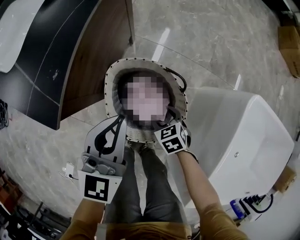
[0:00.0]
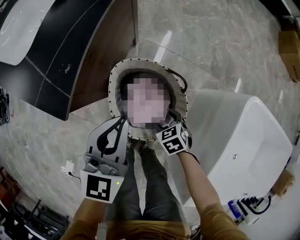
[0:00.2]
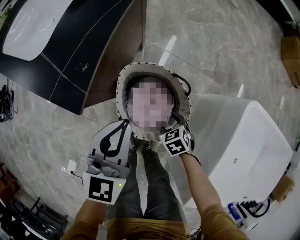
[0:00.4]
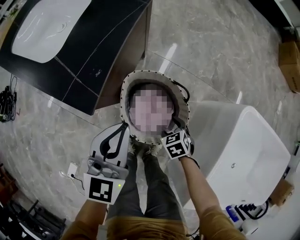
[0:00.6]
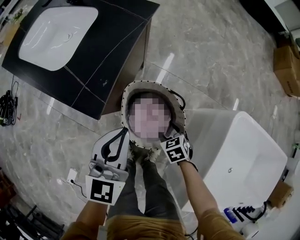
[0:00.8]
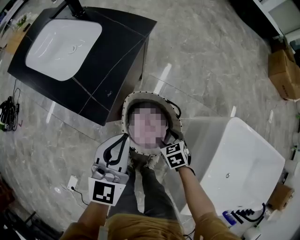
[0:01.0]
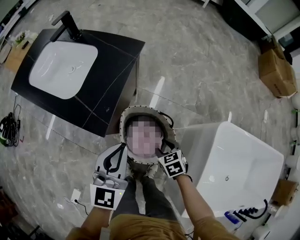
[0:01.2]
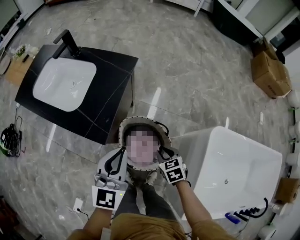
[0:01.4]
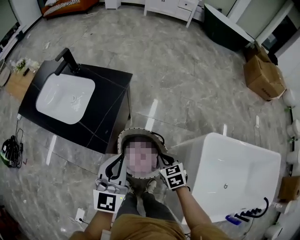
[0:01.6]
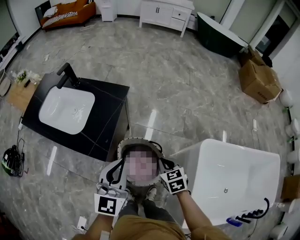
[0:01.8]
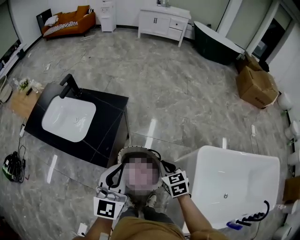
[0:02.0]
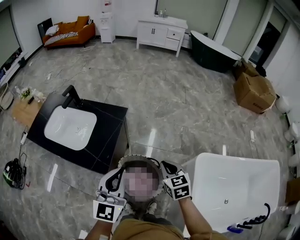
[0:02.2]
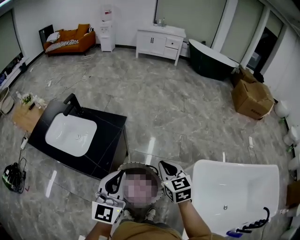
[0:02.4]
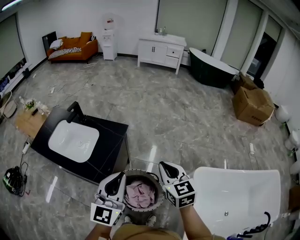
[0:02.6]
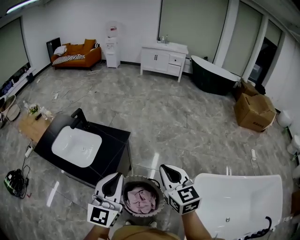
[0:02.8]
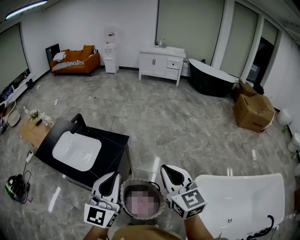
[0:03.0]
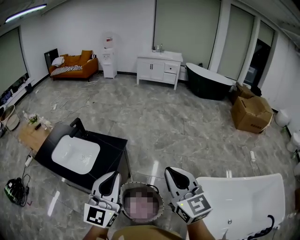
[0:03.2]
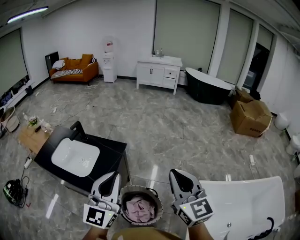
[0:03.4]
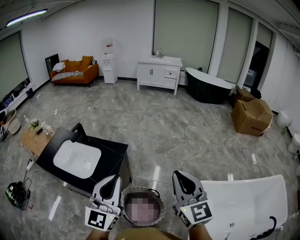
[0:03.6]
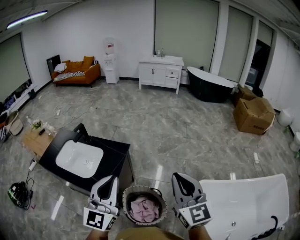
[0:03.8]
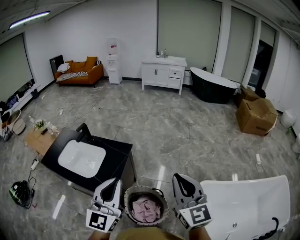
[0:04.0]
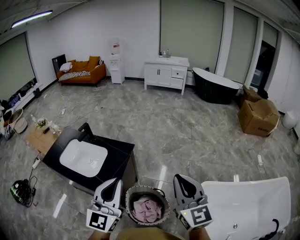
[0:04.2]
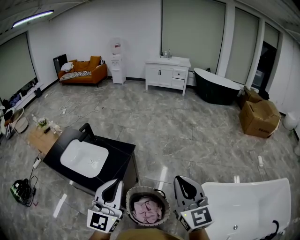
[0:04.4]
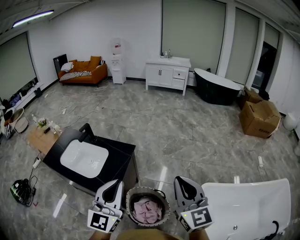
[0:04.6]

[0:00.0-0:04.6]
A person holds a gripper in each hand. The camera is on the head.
0:00.0 to 0:01.6: Both grippers travel together upward, roughly 30 cm. The right gripper closes its fingers.
0:01.6 to 0:03.0: The left gripper goes about 20 cm upward, while the right gripper travels upward by approximately 40 cm, and tilts its fingers about 40 degrees upward.
0:03.0 to 0:04.6: The right gripper shifts by some 5 cm.

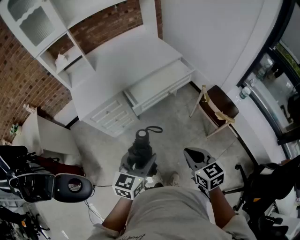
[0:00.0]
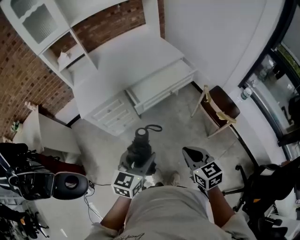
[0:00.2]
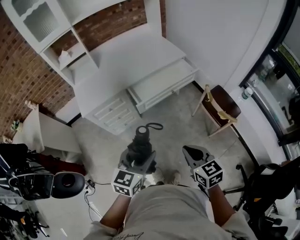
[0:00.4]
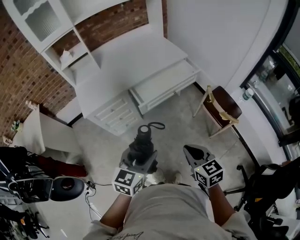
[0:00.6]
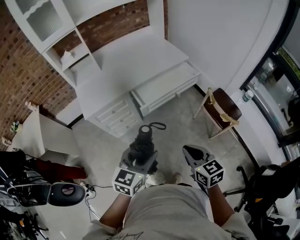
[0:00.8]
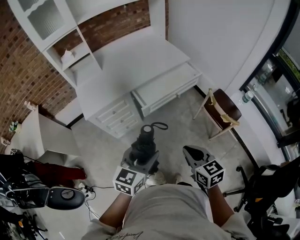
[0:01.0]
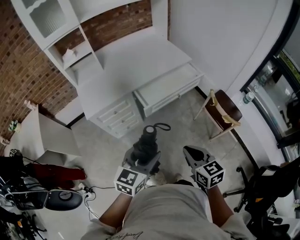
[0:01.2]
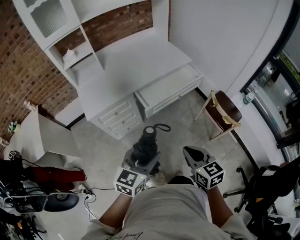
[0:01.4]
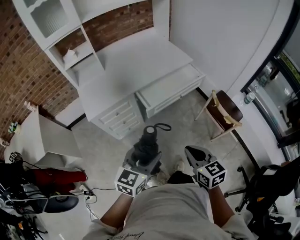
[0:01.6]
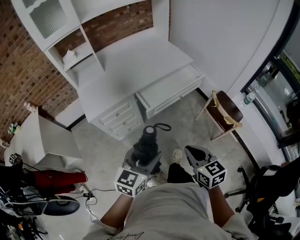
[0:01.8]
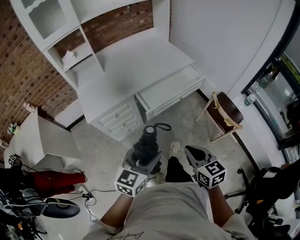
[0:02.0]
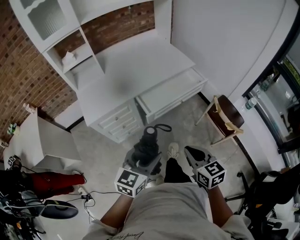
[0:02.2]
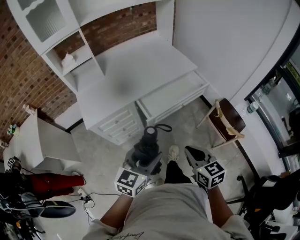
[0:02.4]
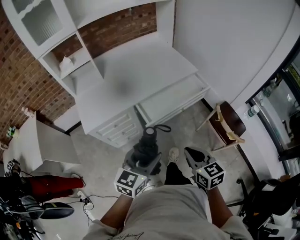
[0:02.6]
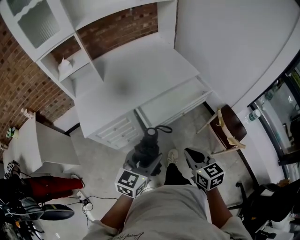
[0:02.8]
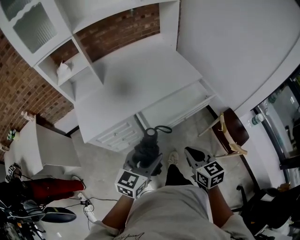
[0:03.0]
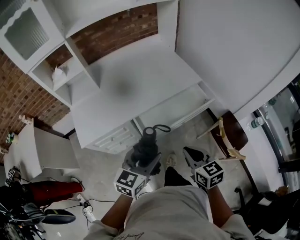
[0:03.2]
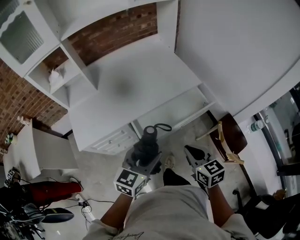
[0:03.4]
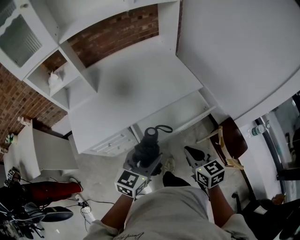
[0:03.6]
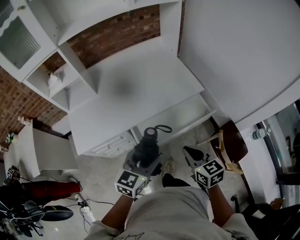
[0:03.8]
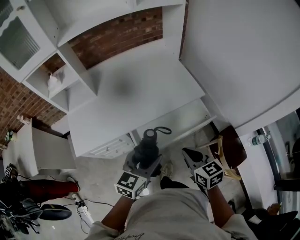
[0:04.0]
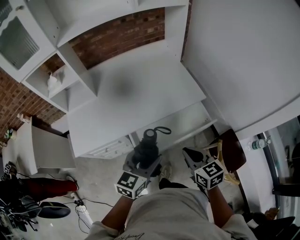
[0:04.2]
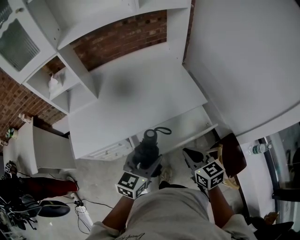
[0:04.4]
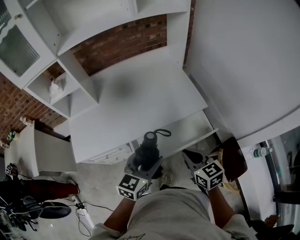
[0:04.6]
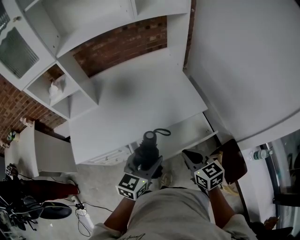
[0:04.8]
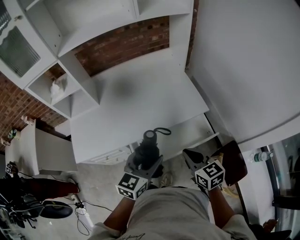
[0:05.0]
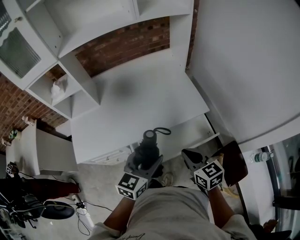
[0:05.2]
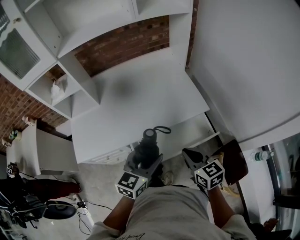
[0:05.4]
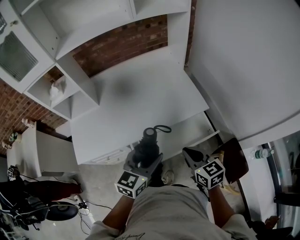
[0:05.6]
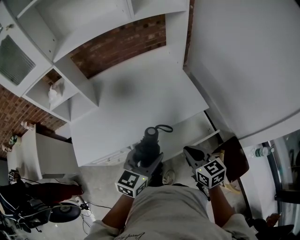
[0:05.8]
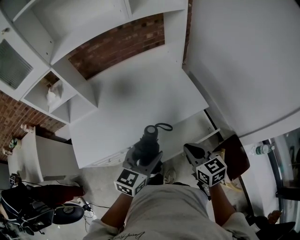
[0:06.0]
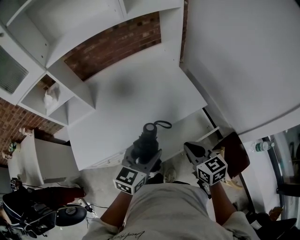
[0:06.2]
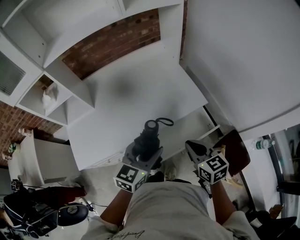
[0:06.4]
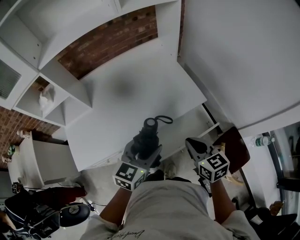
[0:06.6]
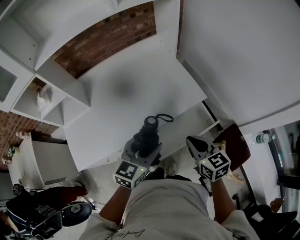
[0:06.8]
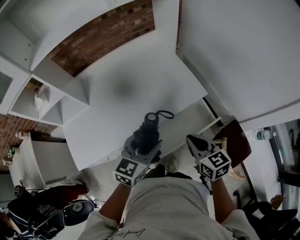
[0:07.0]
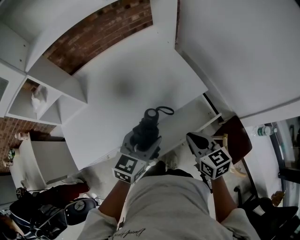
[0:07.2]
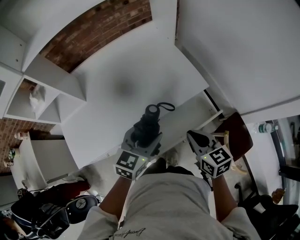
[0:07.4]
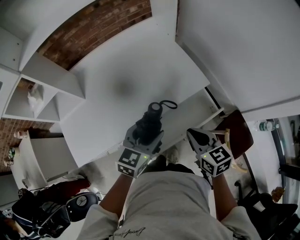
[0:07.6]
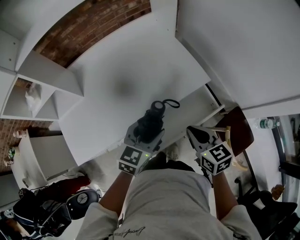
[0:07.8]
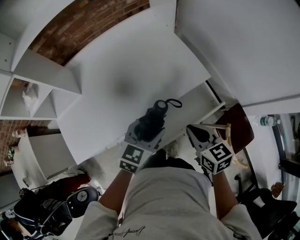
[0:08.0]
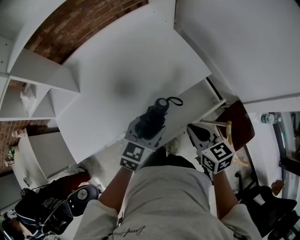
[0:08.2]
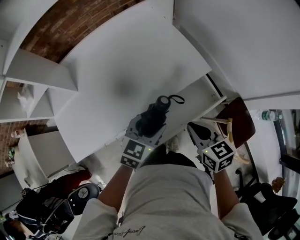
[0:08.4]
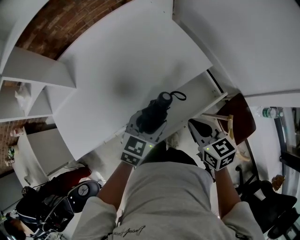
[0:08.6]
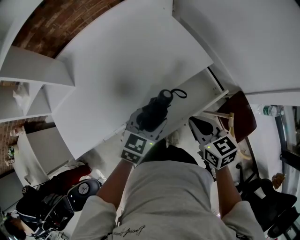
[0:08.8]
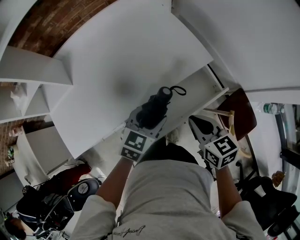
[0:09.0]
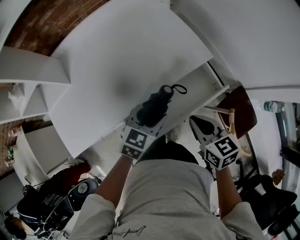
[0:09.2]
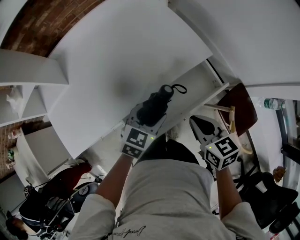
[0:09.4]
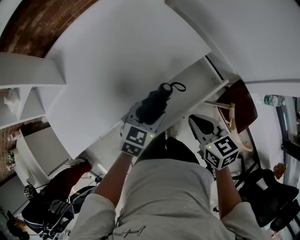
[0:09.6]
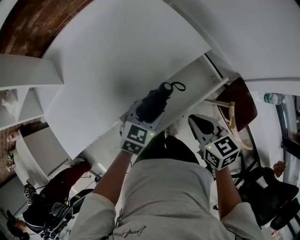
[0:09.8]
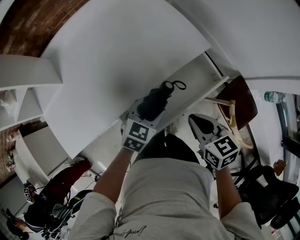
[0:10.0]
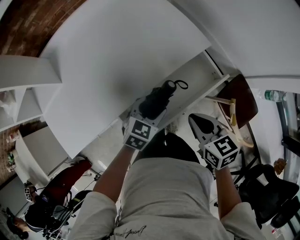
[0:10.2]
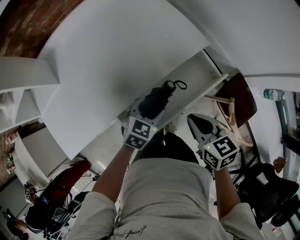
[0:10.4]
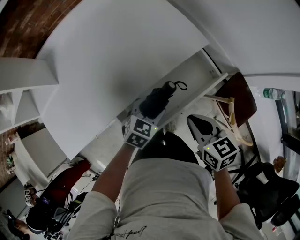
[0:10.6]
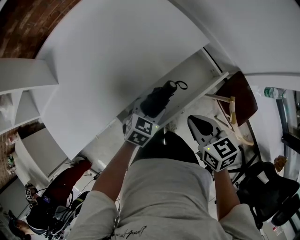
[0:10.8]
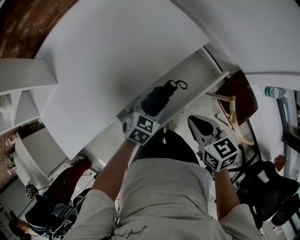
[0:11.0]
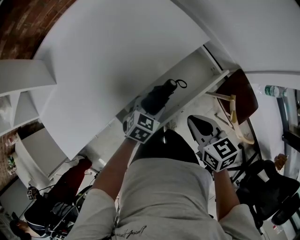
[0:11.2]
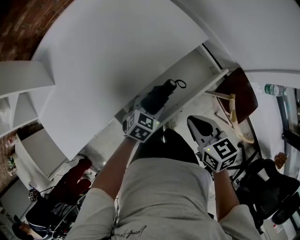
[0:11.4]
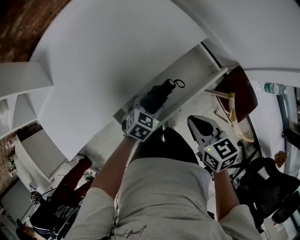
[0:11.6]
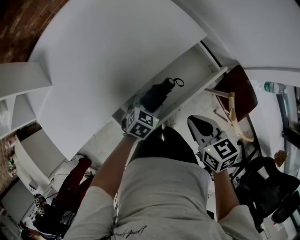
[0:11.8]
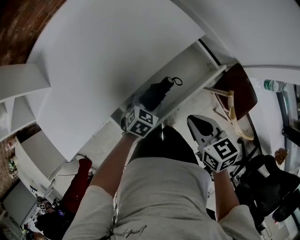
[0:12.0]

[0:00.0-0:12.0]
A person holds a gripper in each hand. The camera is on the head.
0:00.0 to 0:01.6: Both grippers move to the left, some 10 cm.
0:01.6 to 0:03.0: Both grippers move forward, some 20 cm.
0:03.0 to 0:04.4: The grippers both shift forward by roughly 20 cm.
0:04.4 to 0:06.0: Both grippers travel together forward, about 5 cm.
0:06.0 to 0:07.6: The left gripper goes roughly 10 cm forward and downward. The right gripper ends up some 5 cm from where it was.
0:07.6 to 0:09.0: The left gripper moves downward, roughly 10 cm.
0:09.0 to 0:10.4: The left gripper travels downward by approximately 10 cm.
0:10.4 to 0:12.0: The left gripper moves downward, approximately 10 cm.

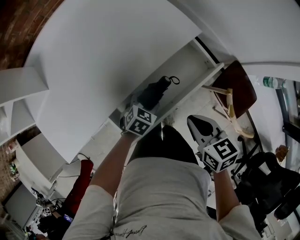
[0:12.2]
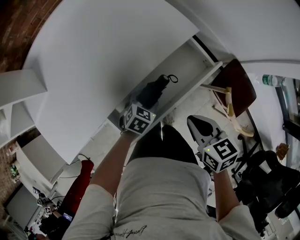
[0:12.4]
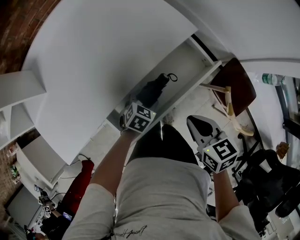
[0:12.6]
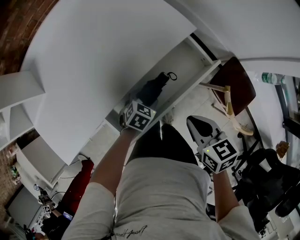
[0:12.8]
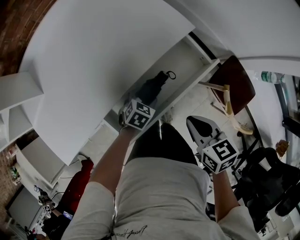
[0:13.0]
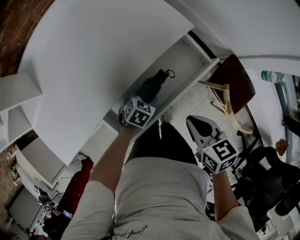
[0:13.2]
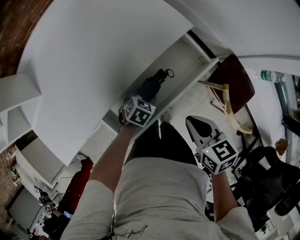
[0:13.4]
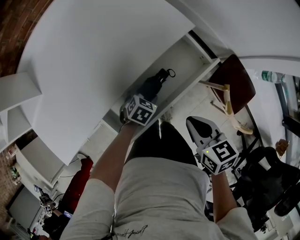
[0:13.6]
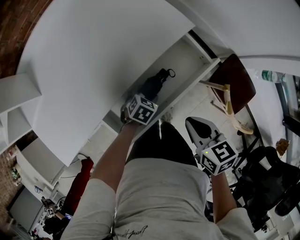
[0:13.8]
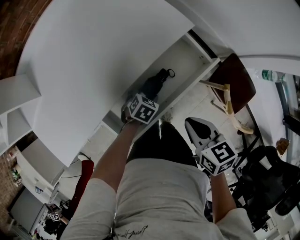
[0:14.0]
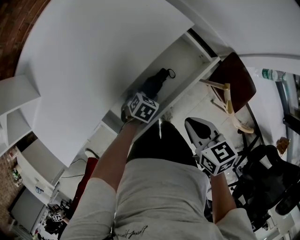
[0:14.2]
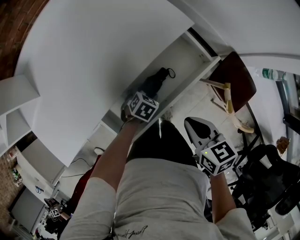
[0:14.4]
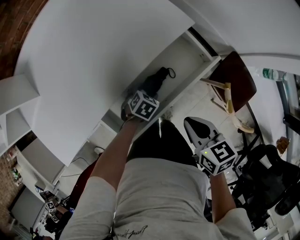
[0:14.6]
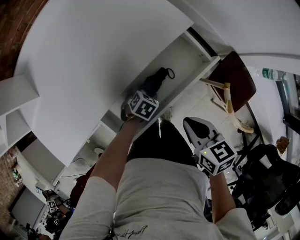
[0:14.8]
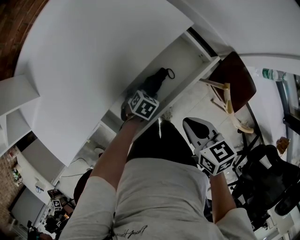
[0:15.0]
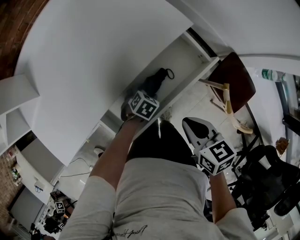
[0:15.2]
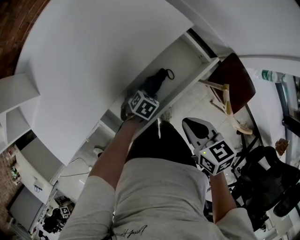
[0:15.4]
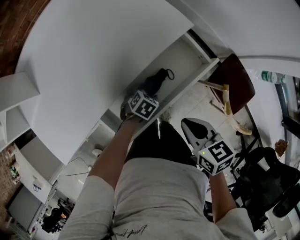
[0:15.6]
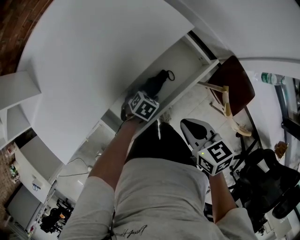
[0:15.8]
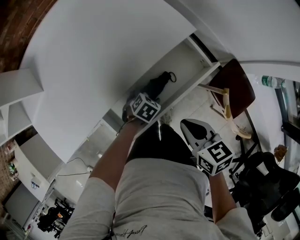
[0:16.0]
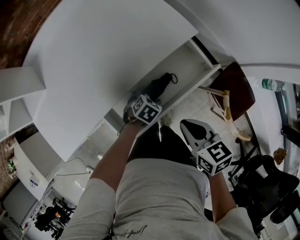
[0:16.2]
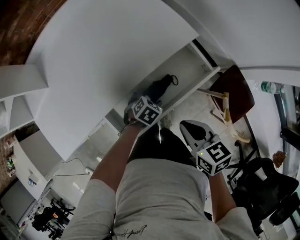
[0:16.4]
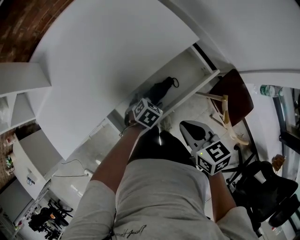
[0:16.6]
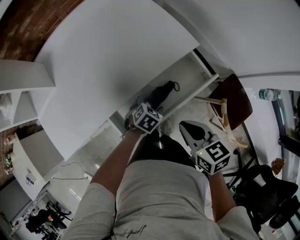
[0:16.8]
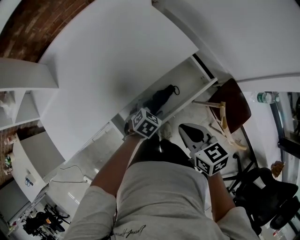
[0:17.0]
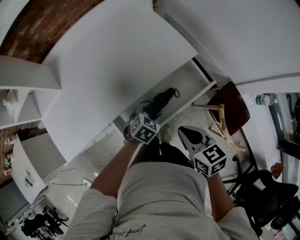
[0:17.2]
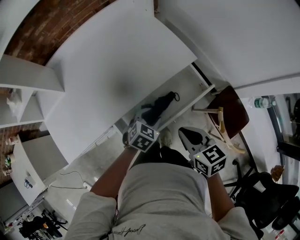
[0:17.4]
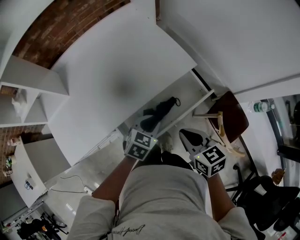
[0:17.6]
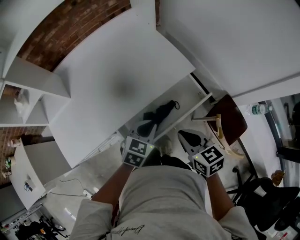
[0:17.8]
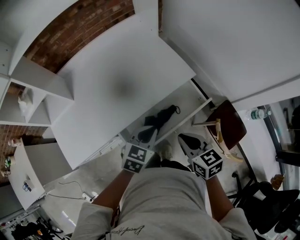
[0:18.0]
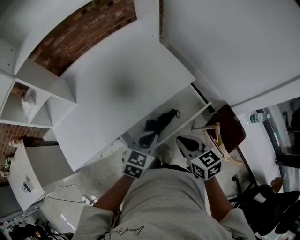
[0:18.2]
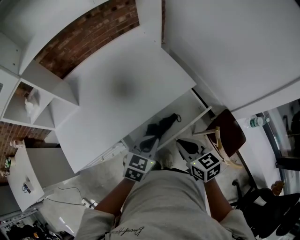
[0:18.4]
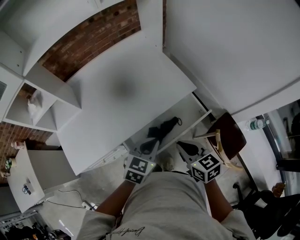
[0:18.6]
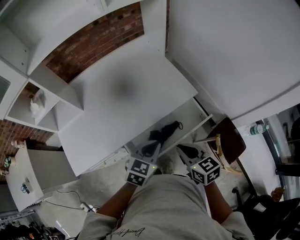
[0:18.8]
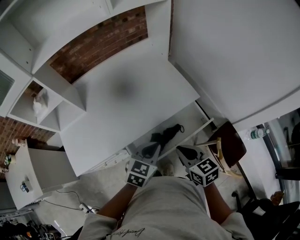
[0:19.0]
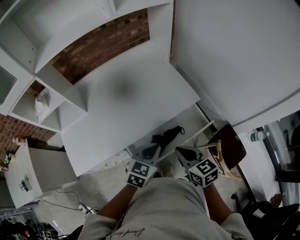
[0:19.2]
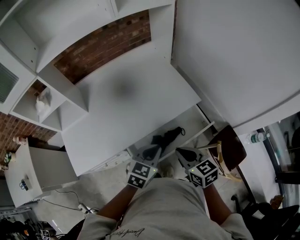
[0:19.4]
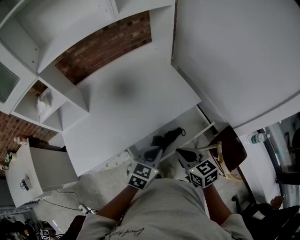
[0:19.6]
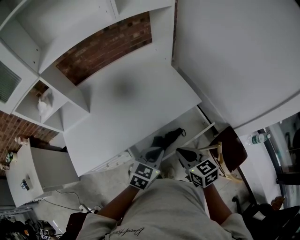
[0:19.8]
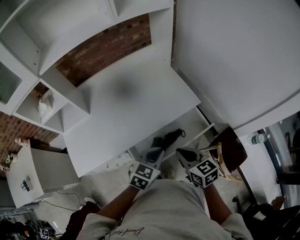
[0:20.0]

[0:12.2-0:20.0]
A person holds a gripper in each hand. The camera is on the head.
0:12.2 to 0:13.8: The left gripper travels downward by about 5 cm.
0:13.8 to 0:15.4: The grippers make only small movements.
0:15.4 to 0:16.8: The right gripper ends up approximately 5 cm from where it was. The left gripper shifts about 10 cm upward.
0:16.8 to 0:18.4: The right gripper goes some 10 cm upward. The left gripper shifts roughly 25 cm upward, swivels about 30 degrees, and closes up.
0:18.4 to 0:20.0: There are only small adjustments of the grippers.
